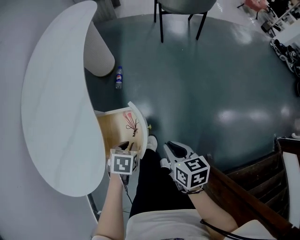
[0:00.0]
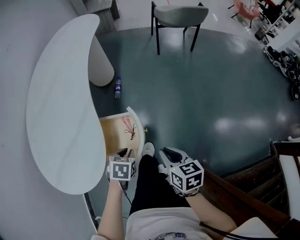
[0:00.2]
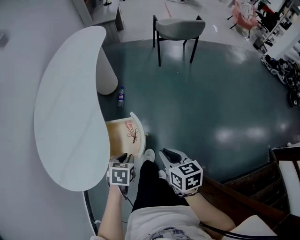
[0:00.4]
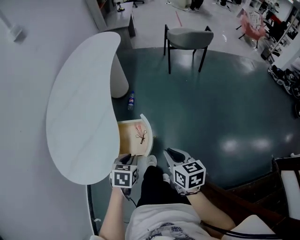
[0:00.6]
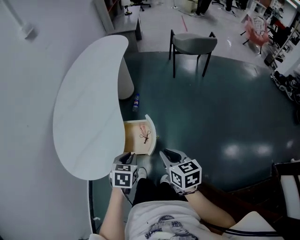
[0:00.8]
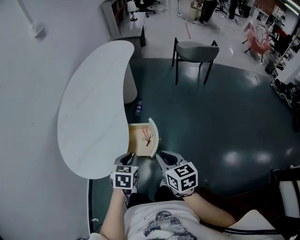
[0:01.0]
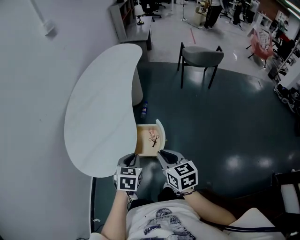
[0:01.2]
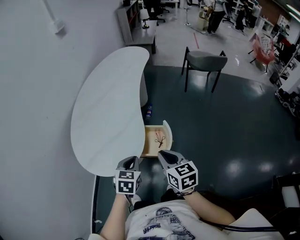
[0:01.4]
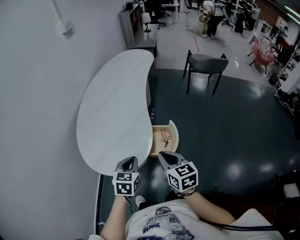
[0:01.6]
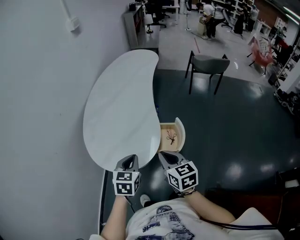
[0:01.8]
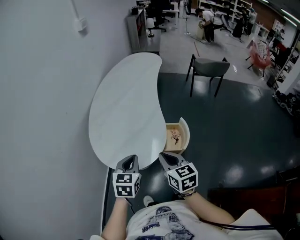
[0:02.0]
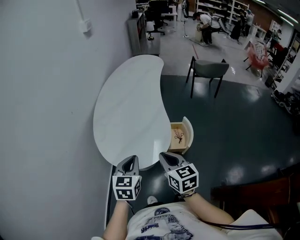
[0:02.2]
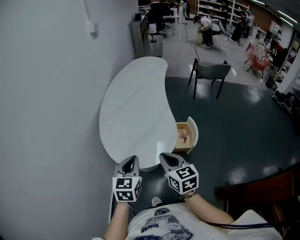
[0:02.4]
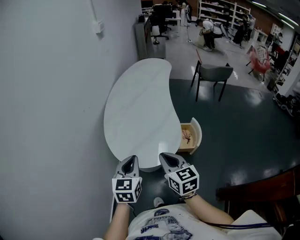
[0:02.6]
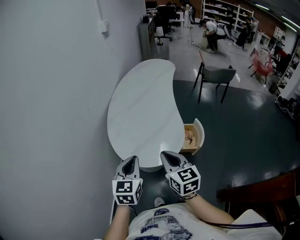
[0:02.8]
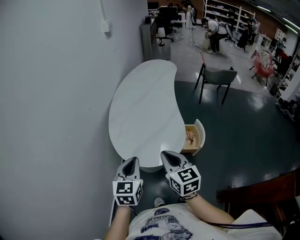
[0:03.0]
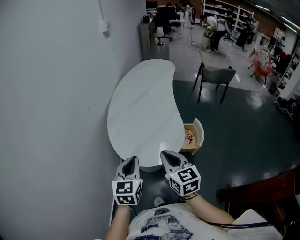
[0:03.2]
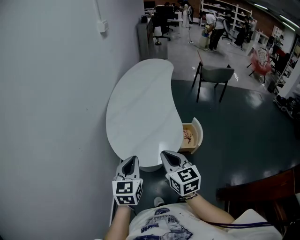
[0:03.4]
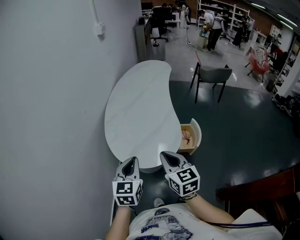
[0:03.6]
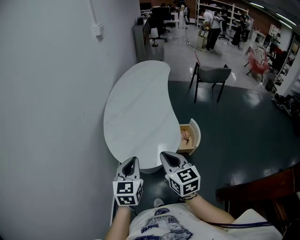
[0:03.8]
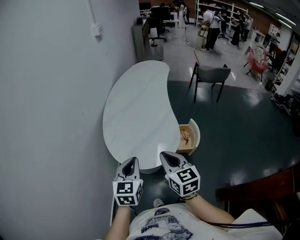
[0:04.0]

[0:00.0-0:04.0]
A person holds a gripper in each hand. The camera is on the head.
0:00.0 to 0:01.4: Both grippers travel together upward and to the left, roughly 30 cm. The left gripper changes its angle by roughly 30 degrees. Meanwhile the right gripper changes its angle by about 30 degrees.
0:01.4 to 0:02.6: The left gripper heads to the left and upward, covering roughly 30 cm, and swivels roughly 20 degrees. Meanwhile the right gripper moves to the left, some 30 cm.
0:02.6 to 0:04.0: The grippers move only a little.

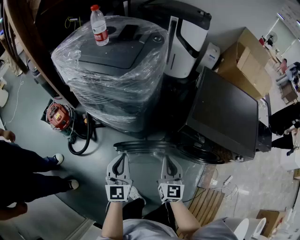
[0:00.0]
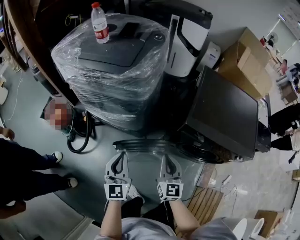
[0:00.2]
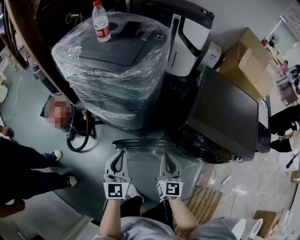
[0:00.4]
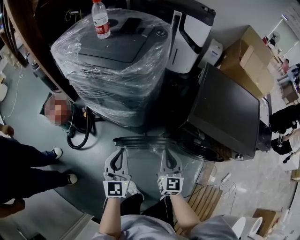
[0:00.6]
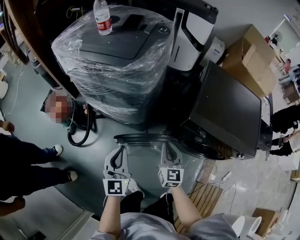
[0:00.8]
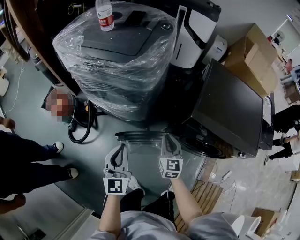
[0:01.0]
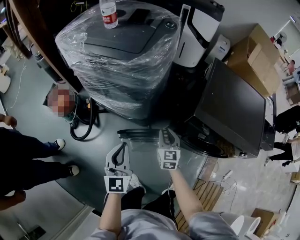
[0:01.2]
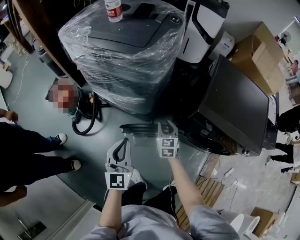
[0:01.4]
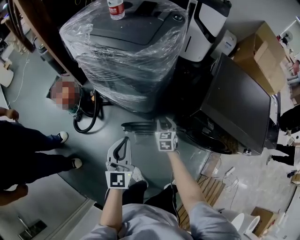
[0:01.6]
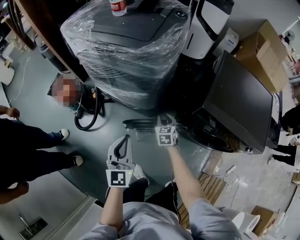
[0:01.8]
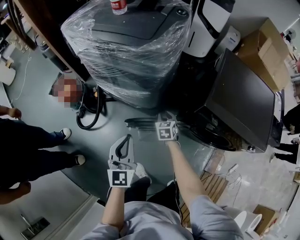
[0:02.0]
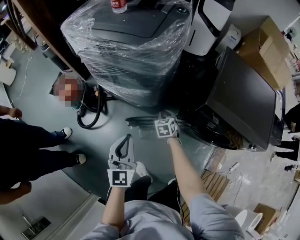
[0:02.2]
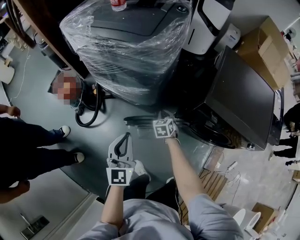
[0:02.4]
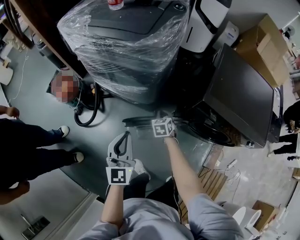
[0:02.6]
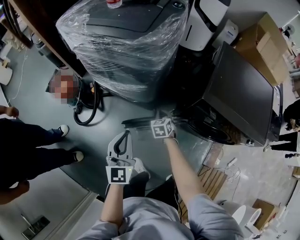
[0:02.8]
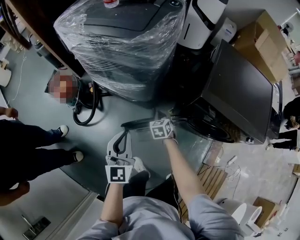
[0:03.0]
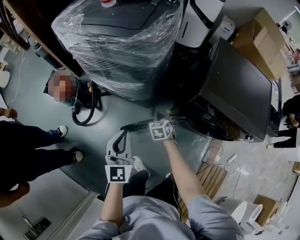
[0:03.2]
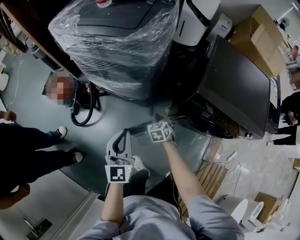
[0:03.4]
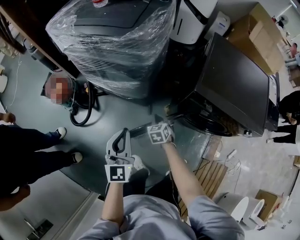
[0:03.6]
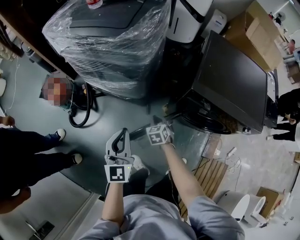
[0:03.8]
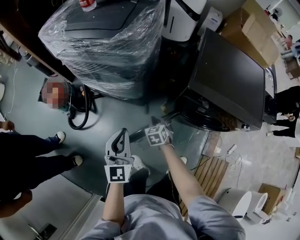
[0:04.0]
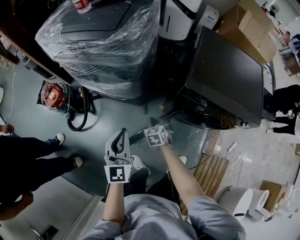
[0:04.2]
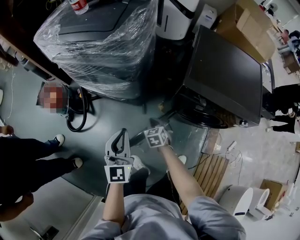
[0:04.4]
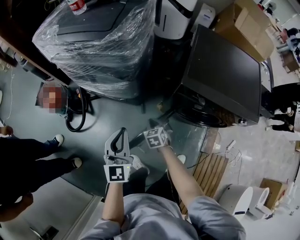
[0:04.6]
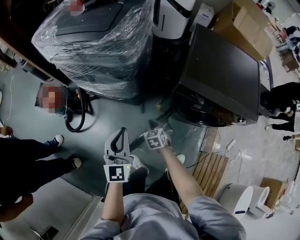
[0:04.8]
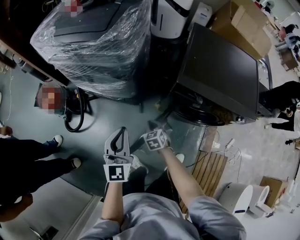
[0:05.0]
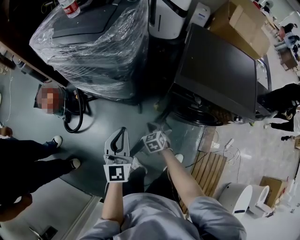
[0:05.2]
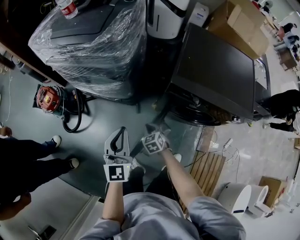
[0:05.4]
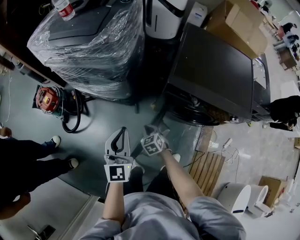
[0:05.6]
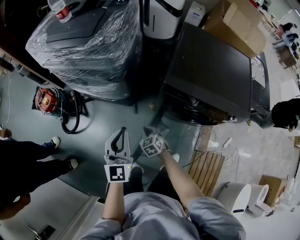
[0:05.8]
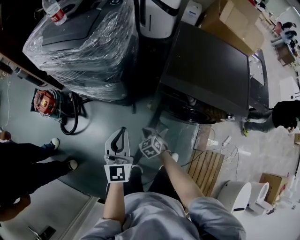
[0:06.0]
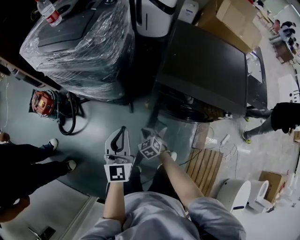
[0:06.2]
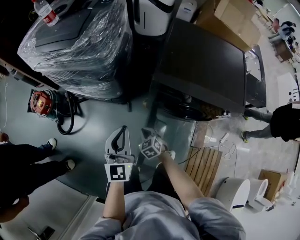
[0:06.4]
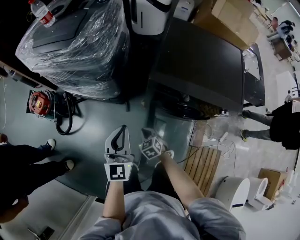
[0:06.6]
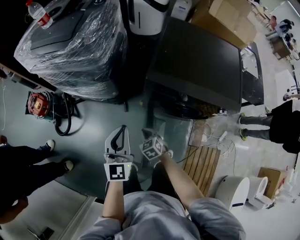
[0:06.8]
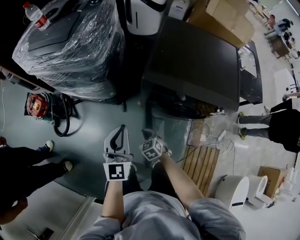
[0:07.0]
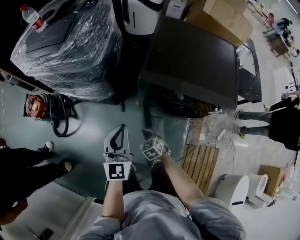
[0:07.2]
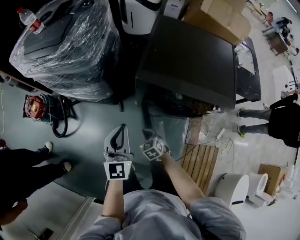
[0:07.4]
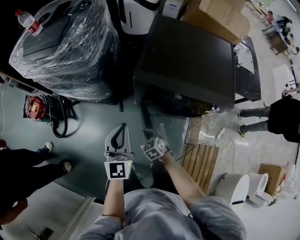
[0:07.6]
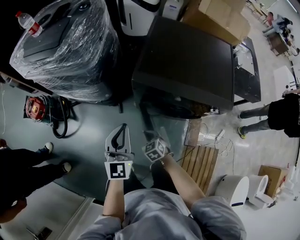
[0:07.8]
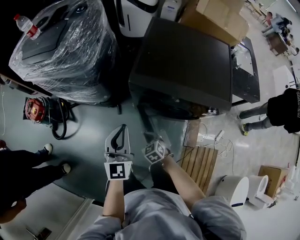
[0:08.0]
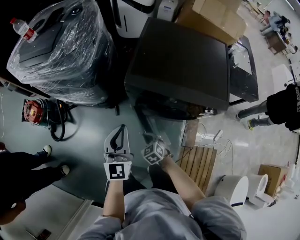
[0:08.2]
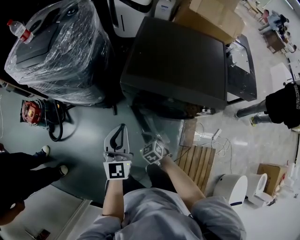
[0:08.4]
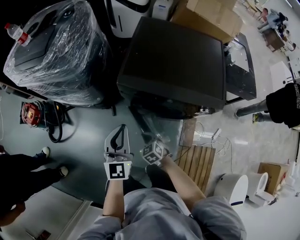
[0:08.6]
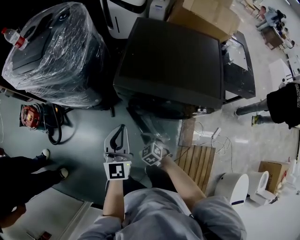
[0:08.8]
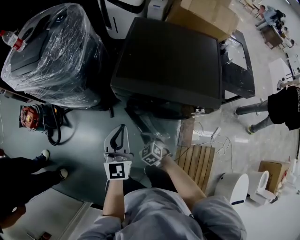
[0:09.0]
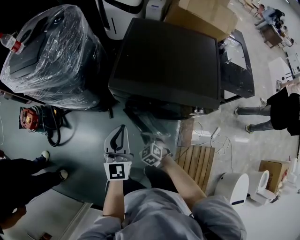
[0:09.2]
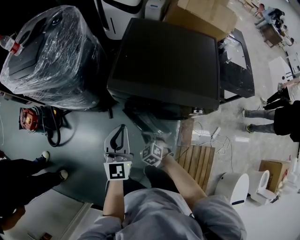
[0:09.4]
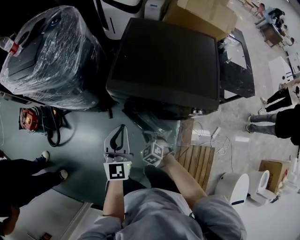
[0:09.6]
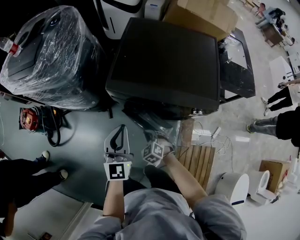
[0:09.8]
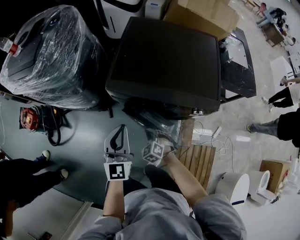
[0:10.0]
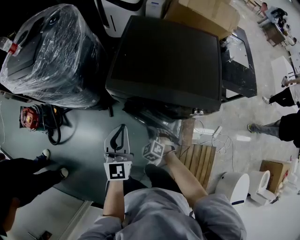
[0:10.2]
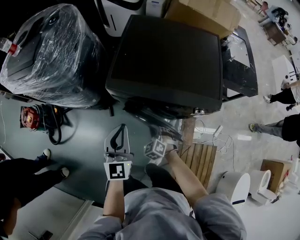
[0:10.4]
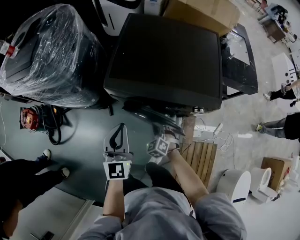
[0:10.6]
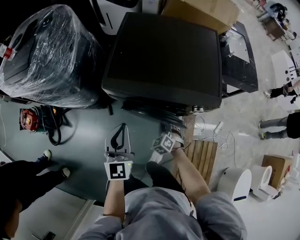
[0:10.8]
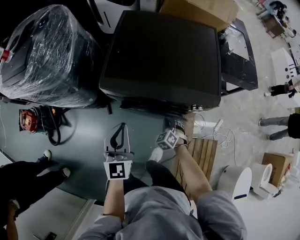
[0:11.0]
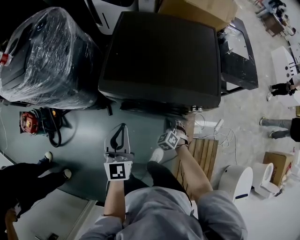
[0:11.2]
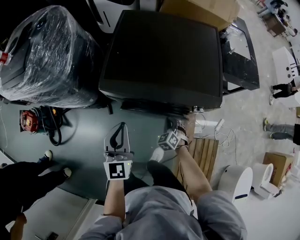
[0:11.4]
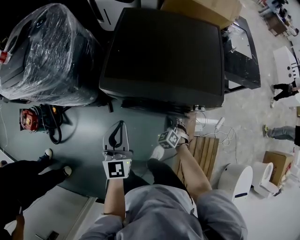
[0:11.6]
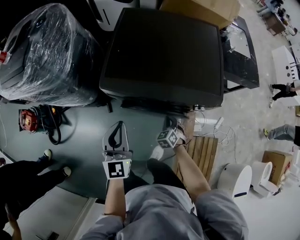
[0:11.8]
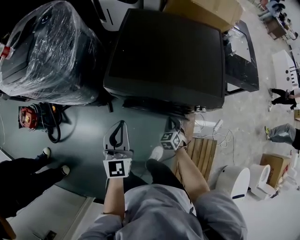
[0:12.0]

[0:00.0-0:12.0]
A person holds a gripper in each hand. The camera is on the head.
0:00.0 to 0:01.6: The right gripper shifts approximately 20 cm downward and forward, changes its angle by approximately 30 degrees, and opens its fingers.
0:01.6 to 0:03.0: The right gripper heads downward, covering approximately 5 cm, and closes.
0:03.0 to 0:04.4: The left gripper is displaced to the right by roughly 5 cm. Meanwhile the right gripper moves backward, roughly 5 cm.
0:04.4 to 0:06.0: The right gripper is displaced backward by roughly 5 cm. The left gripper travels to the right by roughly 10 cm.
0:06.0 to 0:07.6: Both grippers travel together to the right, some 10 cm.
0:07.6 to 0:09.0: Both grippers travel together to the right, roughly 10 cm.
0:09.0 to 0:10.4: The right gripper heads to the right, covering roughly 5 cm.
0:10.4 to 0:12.0: The right gripper heads to the right, covering about 10 cm, and swivels approximately 30 degrees.

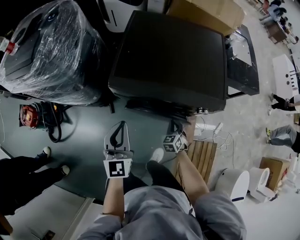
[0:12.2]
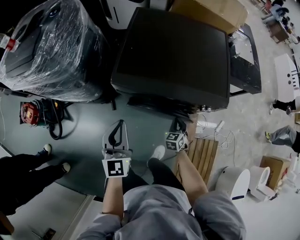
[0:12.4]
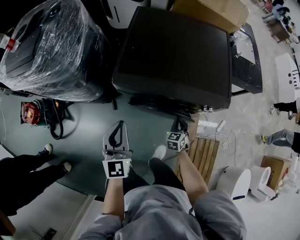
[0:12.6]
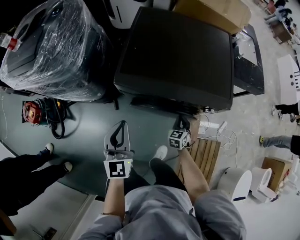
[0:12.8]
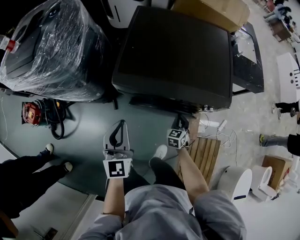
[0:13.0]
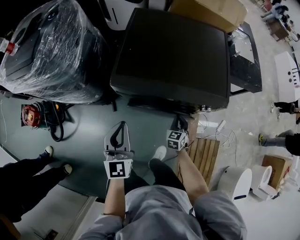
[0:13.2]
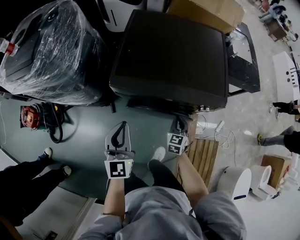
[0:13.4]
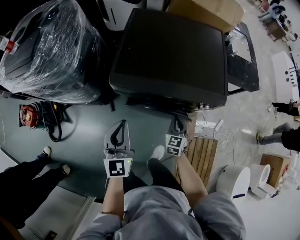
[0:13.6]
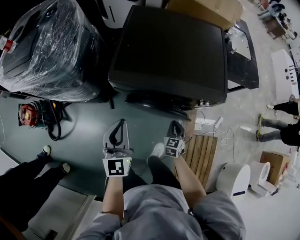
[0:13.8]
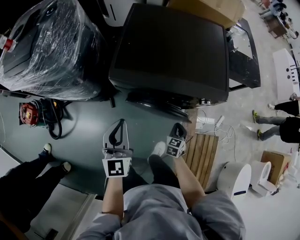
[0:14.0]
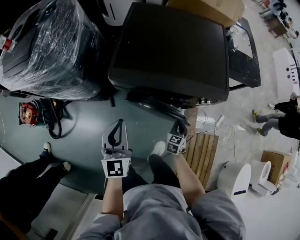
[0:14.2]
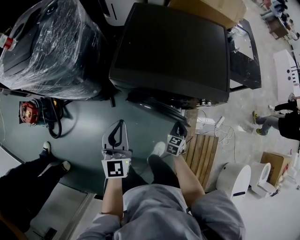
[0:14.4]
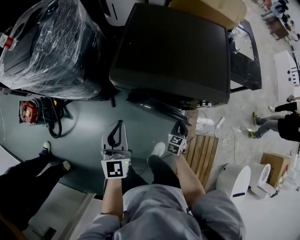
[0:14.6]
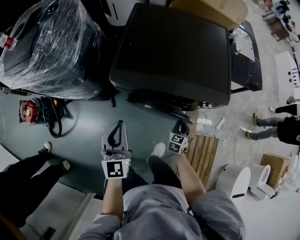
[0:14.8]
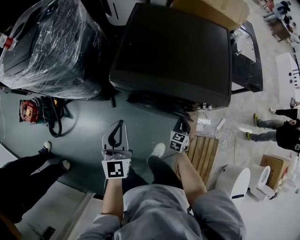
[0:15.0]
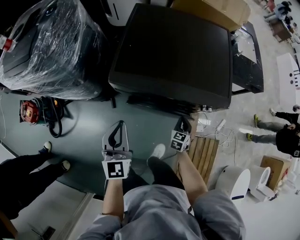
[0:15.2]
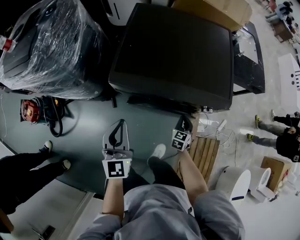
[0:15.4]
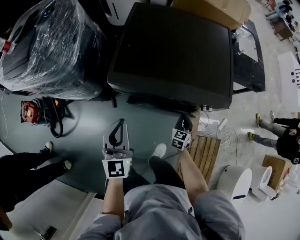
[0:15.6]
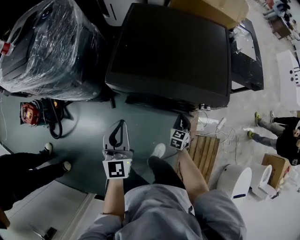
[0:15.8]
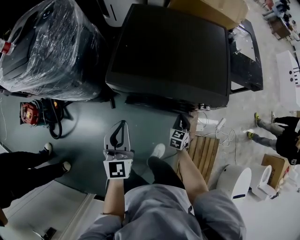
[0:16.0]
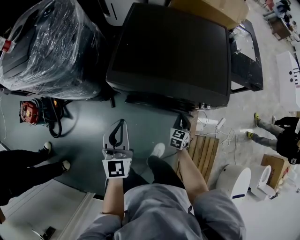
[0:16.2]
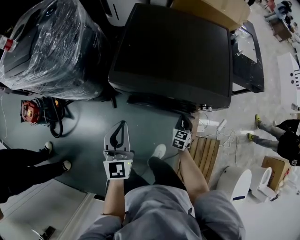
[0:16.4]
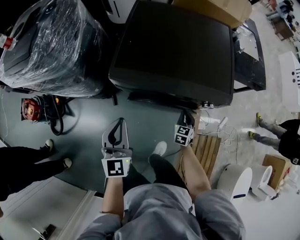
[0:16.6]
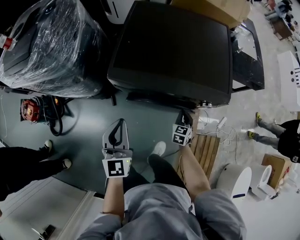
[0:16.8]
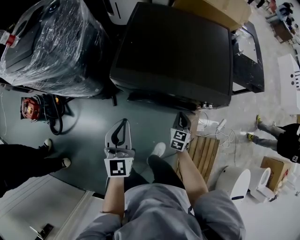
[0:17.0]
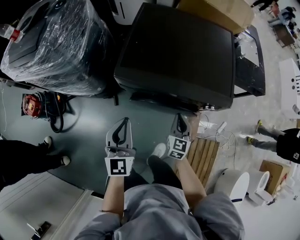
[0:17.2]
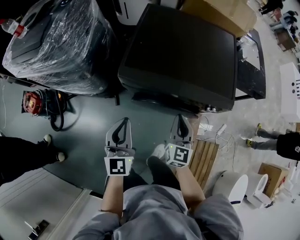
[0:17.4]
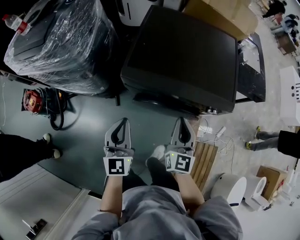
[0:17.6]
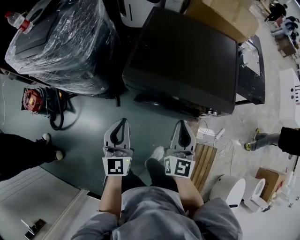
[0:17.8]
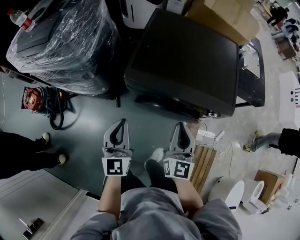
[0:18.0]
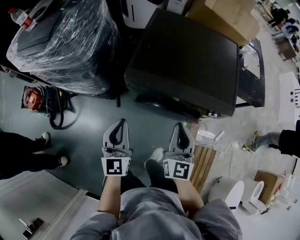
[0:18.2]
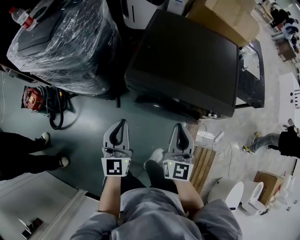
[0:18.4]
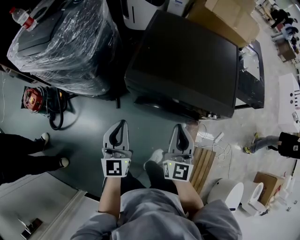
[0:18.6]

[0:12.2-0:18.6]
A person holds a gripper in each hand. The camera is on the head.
0:12.2 to 0:13.8: The right gripper reaches some 10 cm upward, then returns.
0:13.8 to 0:15.4: The right gripper heads forward, covering about 5 cm.
0:15.4 to 0:17.0: The right gripper ends up some 5 cm from where it was.
0:17.0 to 0:18.6: The left gripper shifts some 5 cm to the left. The right gripper travels upward and to the left by some 25 cm, and swivels roughly 30 degrees.

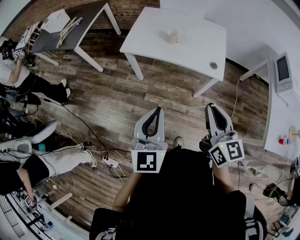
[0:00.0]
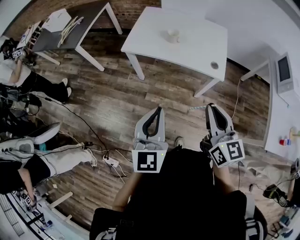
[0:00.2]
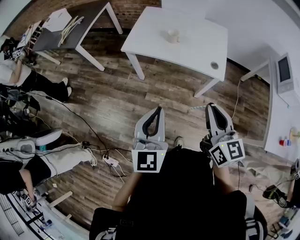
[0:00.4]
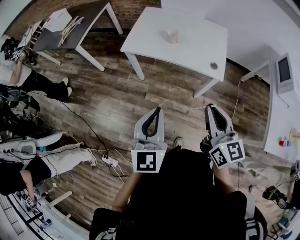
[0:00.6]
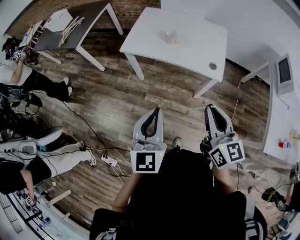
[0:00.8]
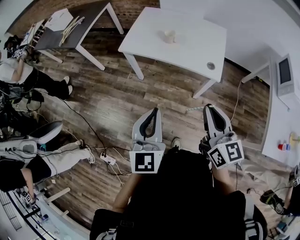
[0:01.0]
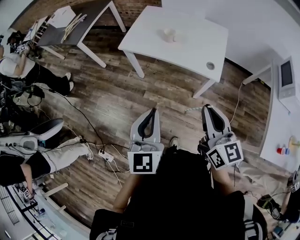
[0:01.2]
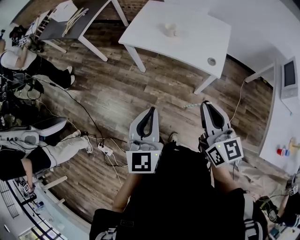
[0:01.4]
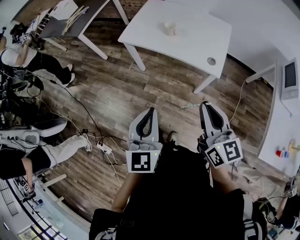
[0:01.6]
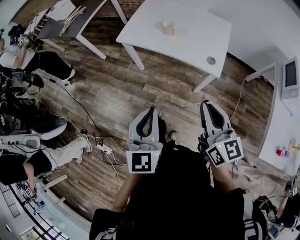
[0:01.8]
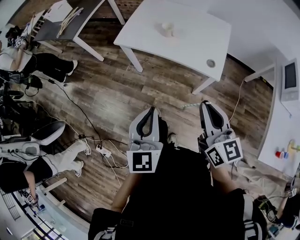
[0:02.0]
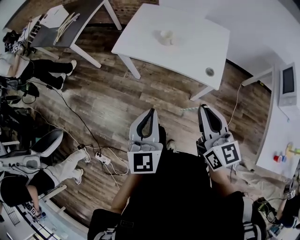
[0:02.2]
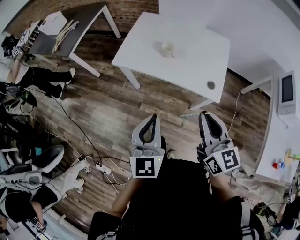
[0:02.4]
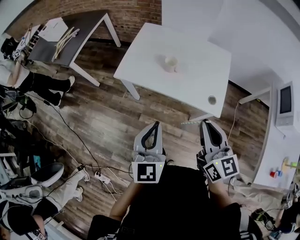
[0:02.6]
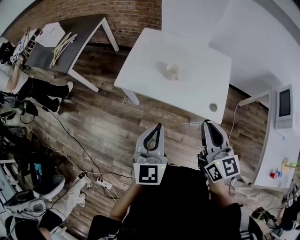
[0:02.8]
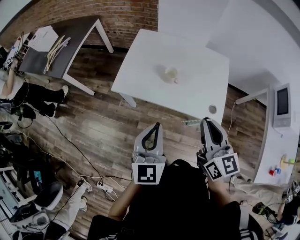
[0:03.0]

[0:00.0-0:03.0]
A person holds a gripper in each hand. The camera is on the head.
0:00.0 to 0:01.6: The grippers both shift to the right by roughly 10 cm.
0:01.6 to 0:03.0: The grippers both shift forward by roughly 25 cm.
